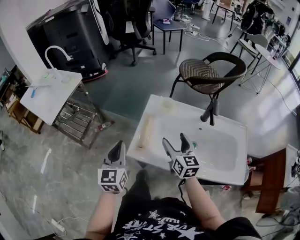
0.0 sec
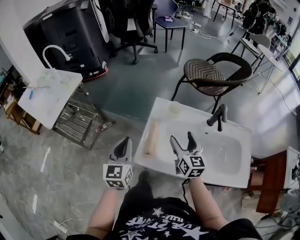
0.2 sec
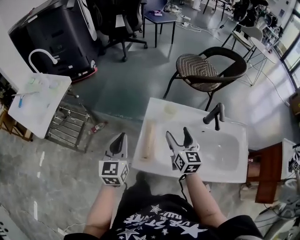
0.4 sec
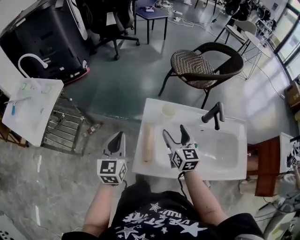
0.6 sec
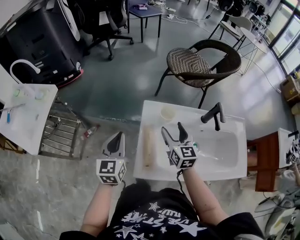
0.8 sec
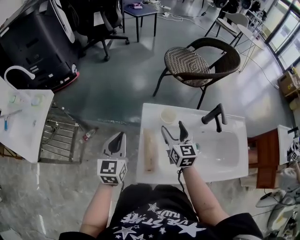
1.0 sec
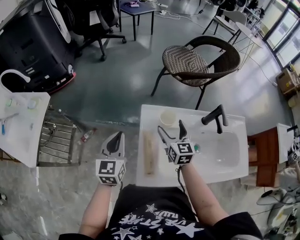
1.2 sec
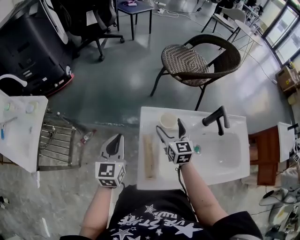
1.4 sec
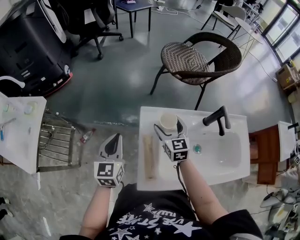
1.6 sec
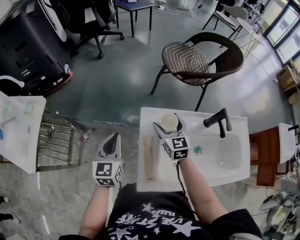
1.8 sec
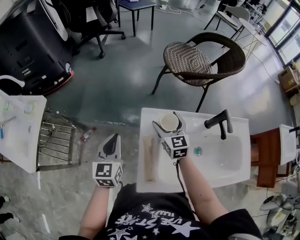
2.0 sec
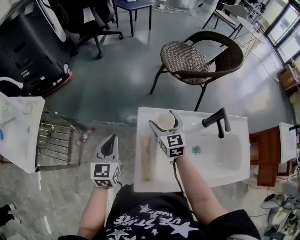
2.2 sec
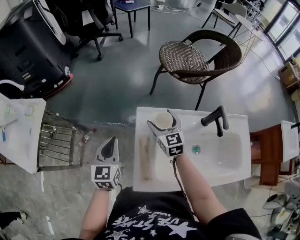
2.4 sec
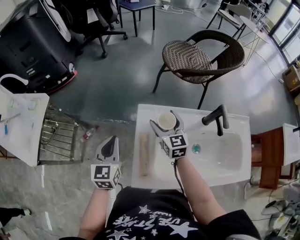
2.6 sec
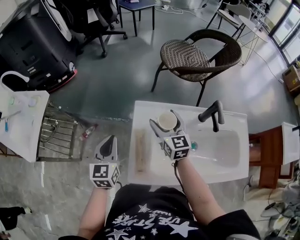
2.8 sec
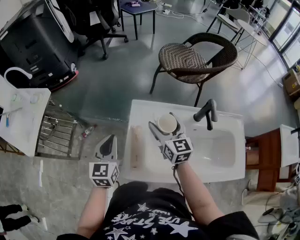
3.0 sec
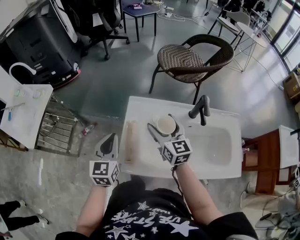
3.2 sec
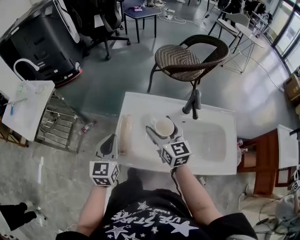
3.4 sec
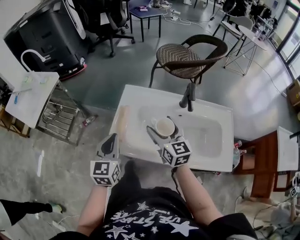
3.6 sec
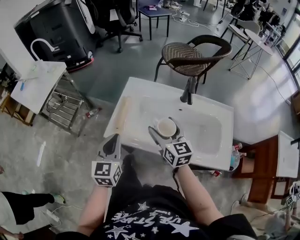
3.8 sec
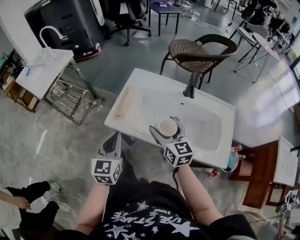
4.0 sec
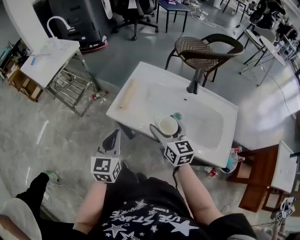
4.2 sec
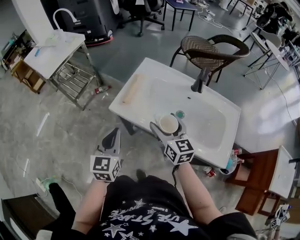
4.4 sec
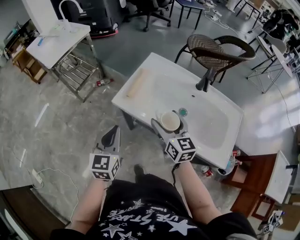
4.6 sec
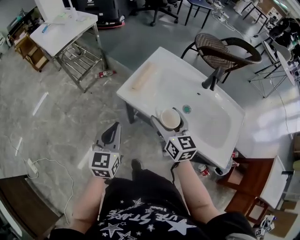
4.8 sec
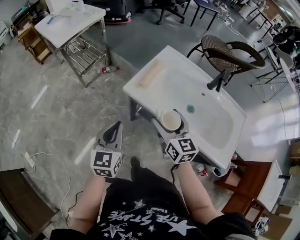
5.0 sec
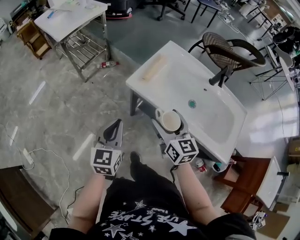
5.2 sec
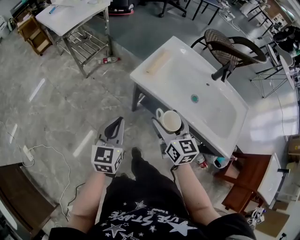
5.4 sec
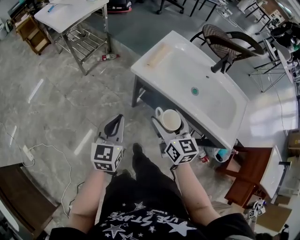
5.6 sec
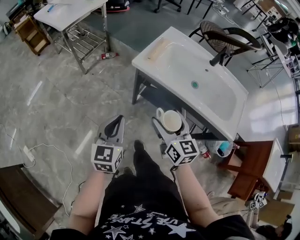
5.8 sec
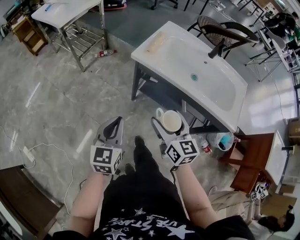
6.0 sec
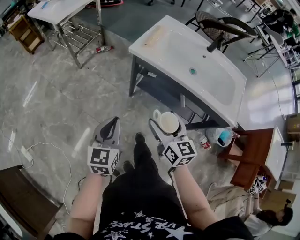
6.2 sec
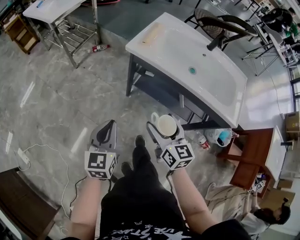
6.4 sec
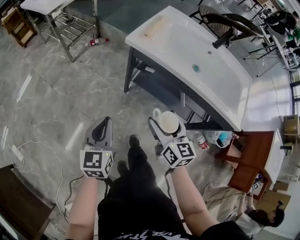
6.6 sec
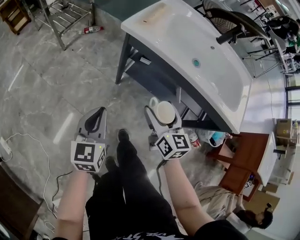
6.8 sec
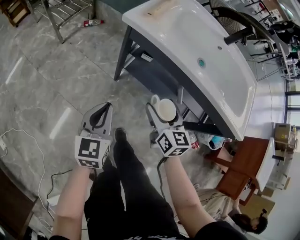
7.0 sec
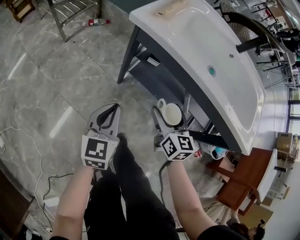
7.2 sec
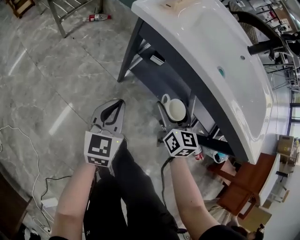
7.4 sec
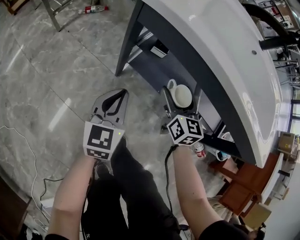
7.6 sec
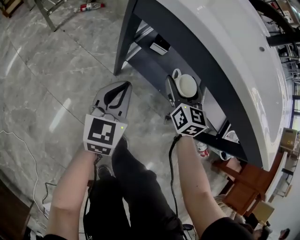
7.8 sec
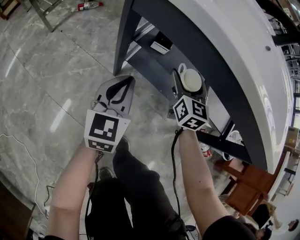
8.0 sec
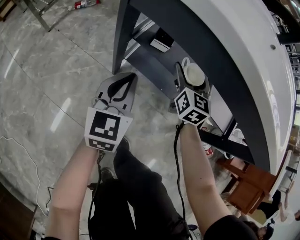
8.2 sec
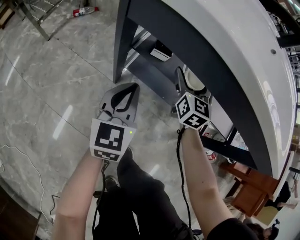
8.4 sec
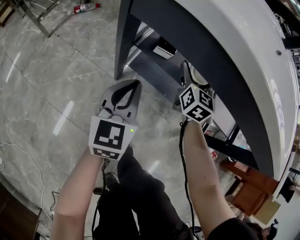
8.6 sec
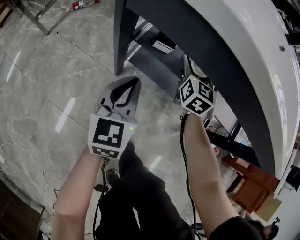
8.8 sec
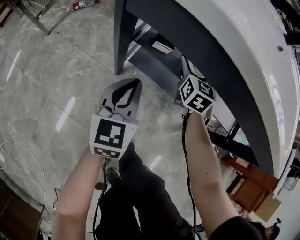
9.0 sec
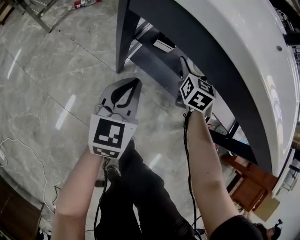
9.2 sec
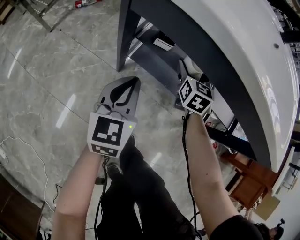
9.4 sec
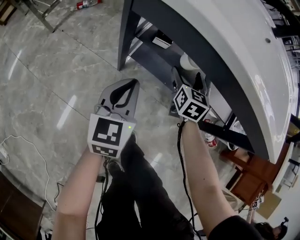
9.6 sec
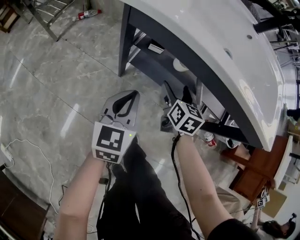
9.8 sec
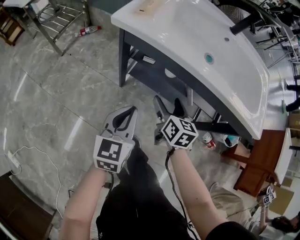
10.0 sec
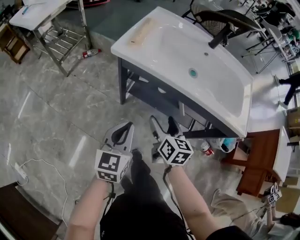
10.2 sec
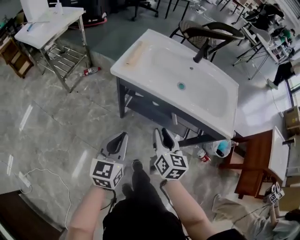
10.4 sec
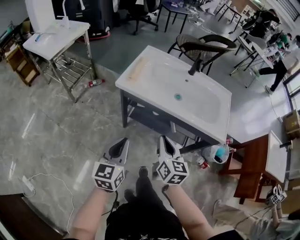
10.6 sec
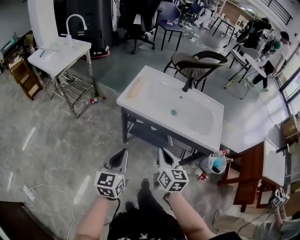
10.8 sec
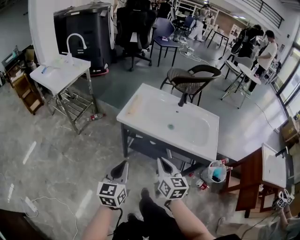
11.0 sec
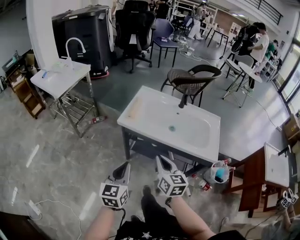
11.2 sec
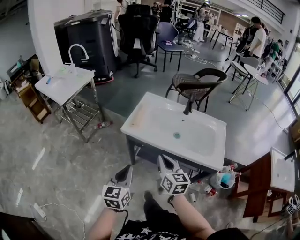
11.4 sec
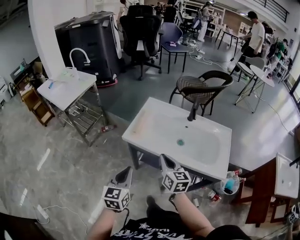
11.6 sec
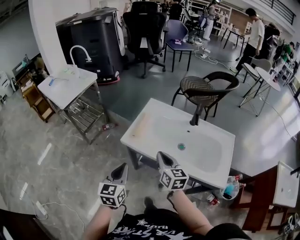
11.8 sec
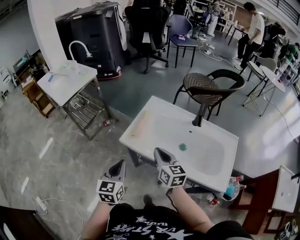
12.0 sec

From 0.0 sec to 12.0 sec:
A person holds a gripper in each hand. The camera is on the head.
From 0.0 sec to 1.6 sec: The grippers both shift forward by some 20 cm. The right gripper turns by approximately 20 degrees; the left gripper rotates approximately 20 degrees.
From 1.6 sec to 3.0 sec: The right gripper is displaced upward and backward by approximately 10 cm, while the left gripper heads backward, covering approximately 5 cm.
From 3.0 sec to 4.4 sec: Both grippers move backward, roughly 30 cm. The right gripper turns by about 20 degrees.
From 4.4 sec to 6.0 sec: Both grippers move backward and to the left, roughly 20 cm.
From 6.0 sec to 7.6 sec: The grippers both shift downward and forward by roughly 30 cm.
From 7.6 sec to 9.0 sec: The left gripper travels forward by approximately 10 cm; the right gripper heads forward and downward, covering roughly 15 cm, and turns by approximately 20 degrees.
From 9.0 sec to 10.4 sec: The right gripper moves backward and upward, some 40 cm, swivels some 20 degrees, and closes, while the left gripper travels upward and backward by about 35 cm.
From 10.4 sec to 12.0 sec: The grippers both shift forward and upward by roughly 20 cm. The right gripper turns by approximately 20 degrees.

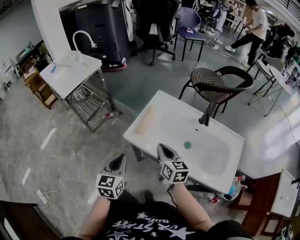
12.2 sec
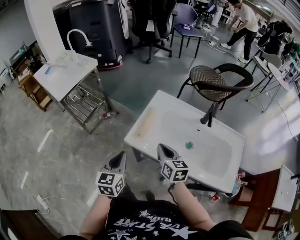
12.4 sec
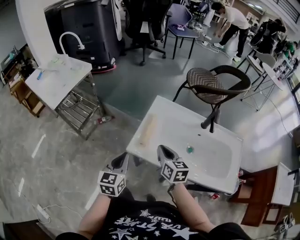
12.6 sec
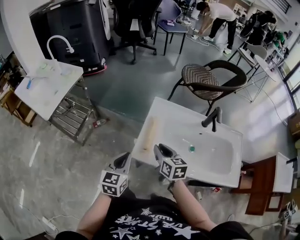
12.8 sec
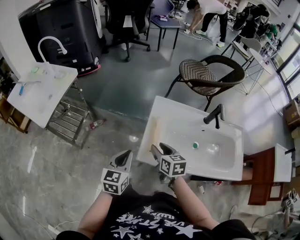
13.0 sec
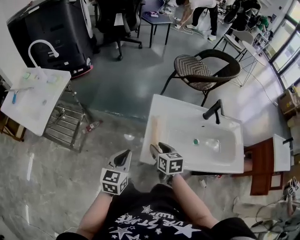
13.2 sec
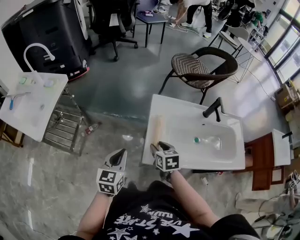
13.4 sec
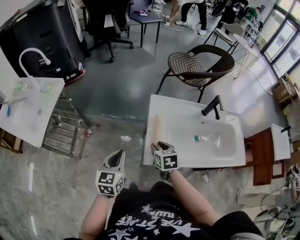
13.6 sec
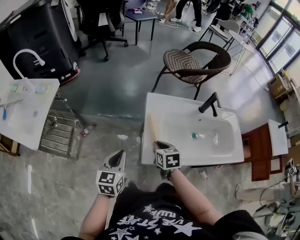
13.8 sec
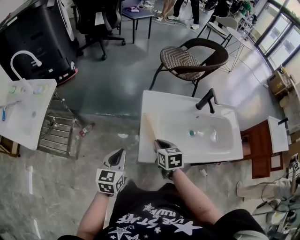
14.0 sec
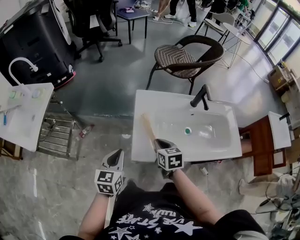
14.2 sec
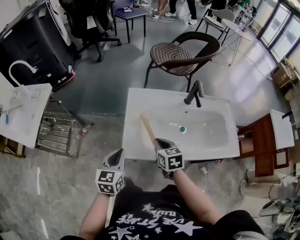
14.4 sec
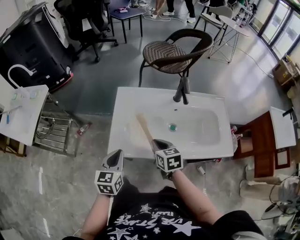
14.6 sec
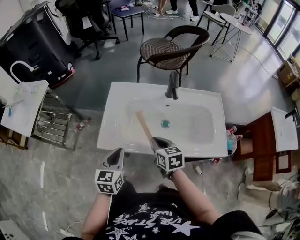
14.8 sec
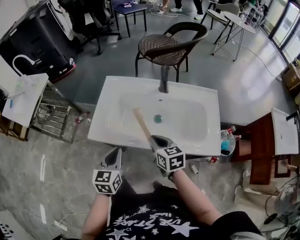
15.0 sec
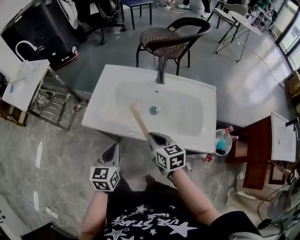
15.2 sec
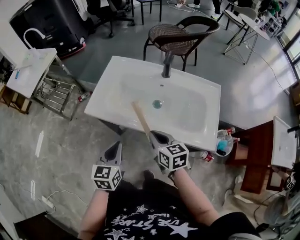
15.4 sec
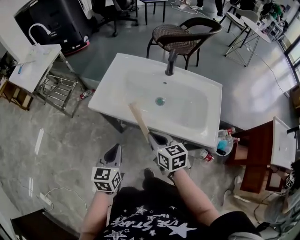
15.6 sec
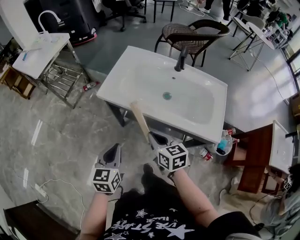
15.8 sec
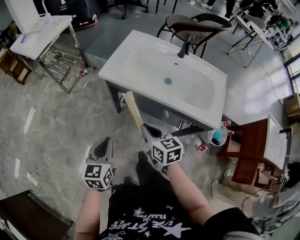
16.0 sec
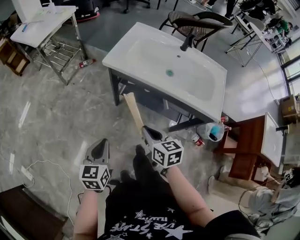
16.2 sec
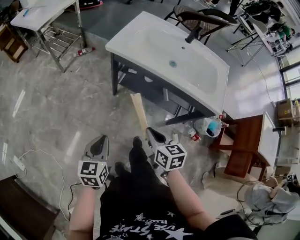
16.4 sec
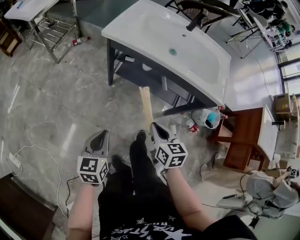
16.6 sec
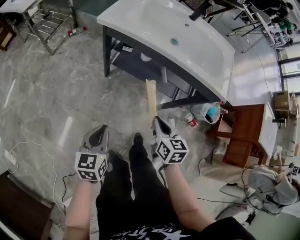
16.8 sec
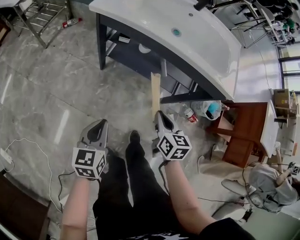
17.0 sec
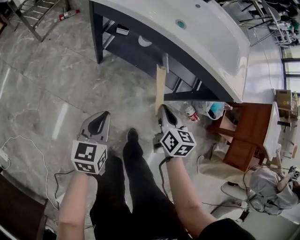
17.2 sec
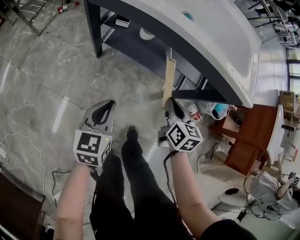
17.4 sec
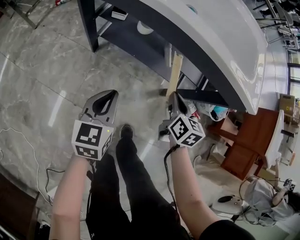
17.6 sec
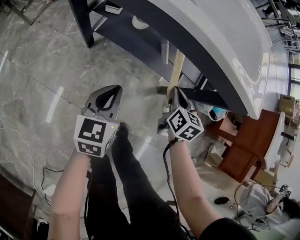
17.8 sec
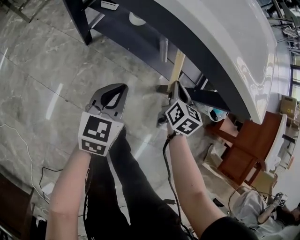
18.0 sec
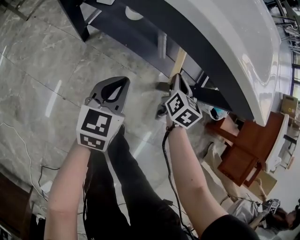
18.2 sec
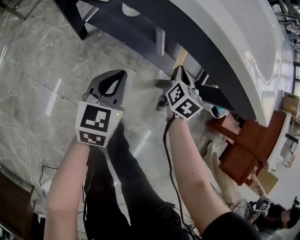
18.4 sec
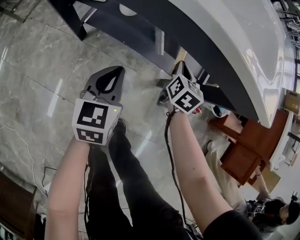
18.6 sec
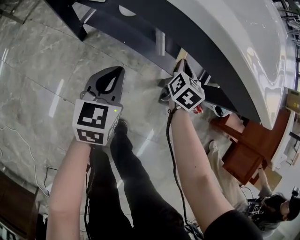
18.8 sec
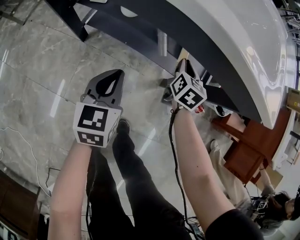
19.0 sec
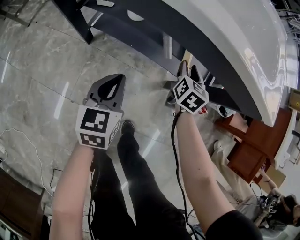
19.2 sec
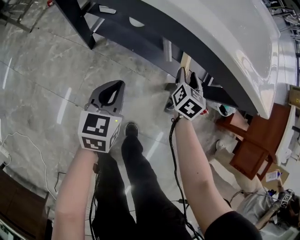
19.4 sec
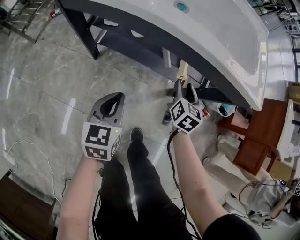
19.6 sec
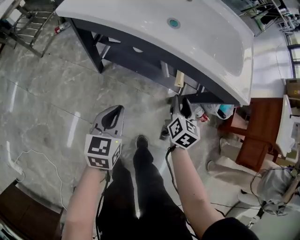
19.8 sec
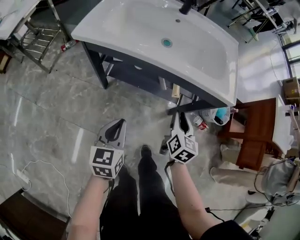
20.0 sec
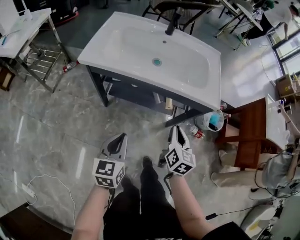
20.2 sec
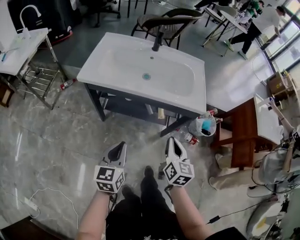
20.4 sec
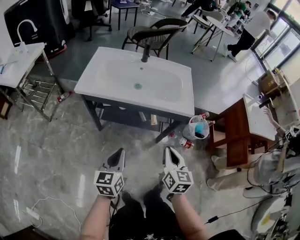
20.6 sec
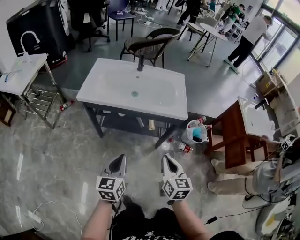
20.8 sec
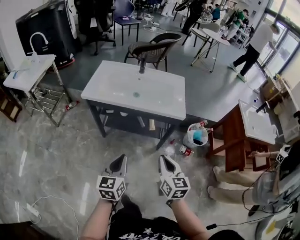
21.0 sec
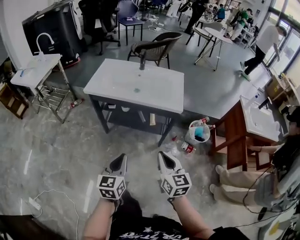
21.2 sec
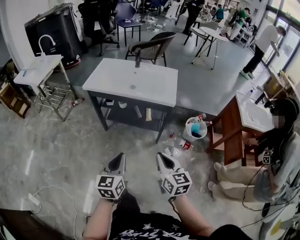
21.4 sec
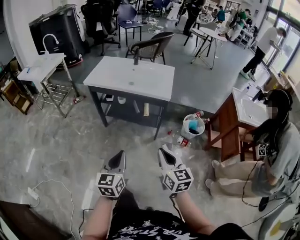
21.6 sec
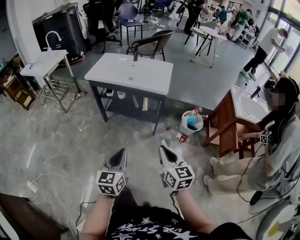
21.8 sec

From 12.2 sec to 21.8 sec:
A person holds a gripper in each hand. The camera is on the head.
From 12.2 sec to 13.8 sec: The left gripper shifts by approximately 25 cm, and changes its angle by approximately 30 degrees; the right gripper moves about 20 cm, and turns by roughly 40 degrees.
From 13.8 sec to 15.4 sec: Both grippers move to the right and backward, some 35 cm. The right gripper changes its angle by approximately 30 degrees.
From 15.4 sec to 17.0 sec: The right gripper is displaced backward and downward by some 30 cm; the left gripper travels backward, downward and to the left by roughly 30 cm.
From 17.0 sec to 18.6 sec: The right gripper goes some 35 cm forward, downward and to the right, and rotates roughly 20 degrees; the left gripper goes roughly 30 cm forward, to the right and downward.
From 18.6 sec to 20.2 sec: The grippers both shift upward and backward by about 30 cm.
From 20.2 sec to 21.8 sec: The right gripper travels backward, upward and to the right by approximately 40 cm, and turns by some 30 degrees; the left gripper moves backward, to the right and upward, approximately 40 cm.

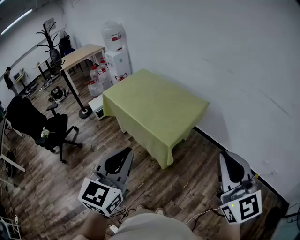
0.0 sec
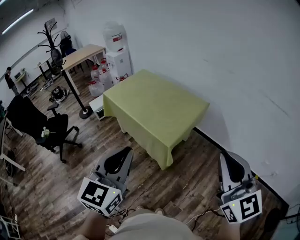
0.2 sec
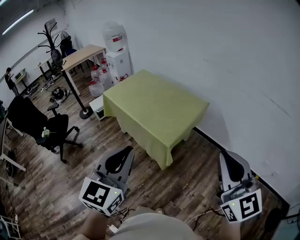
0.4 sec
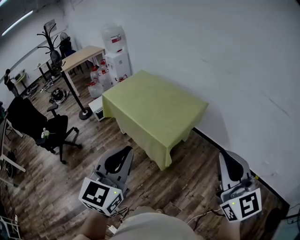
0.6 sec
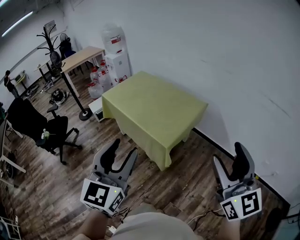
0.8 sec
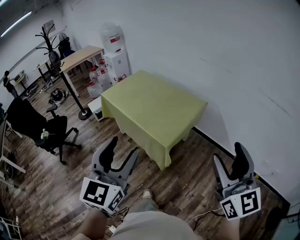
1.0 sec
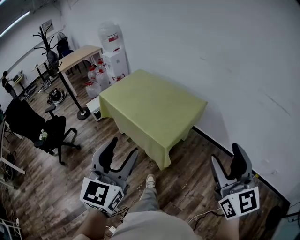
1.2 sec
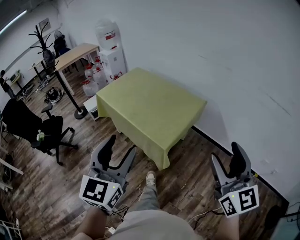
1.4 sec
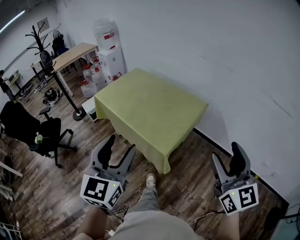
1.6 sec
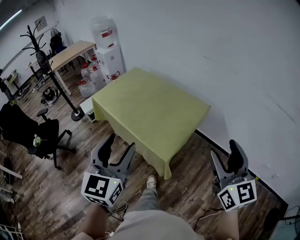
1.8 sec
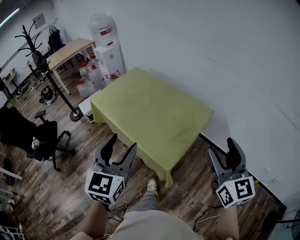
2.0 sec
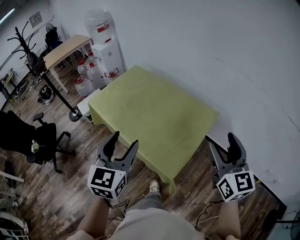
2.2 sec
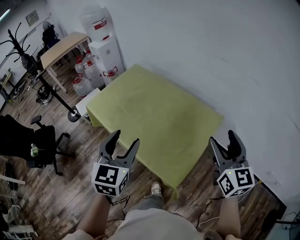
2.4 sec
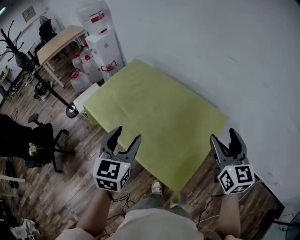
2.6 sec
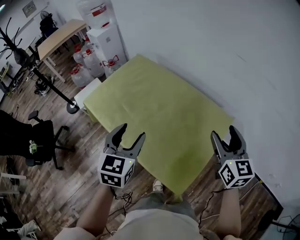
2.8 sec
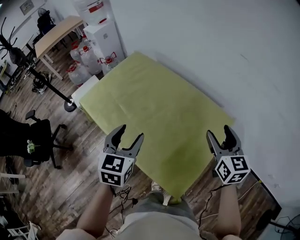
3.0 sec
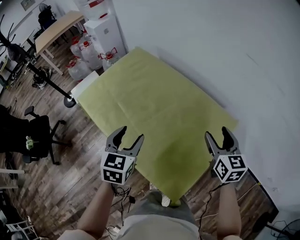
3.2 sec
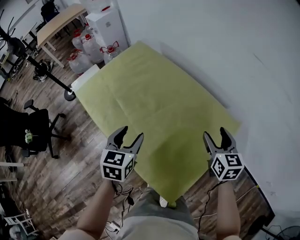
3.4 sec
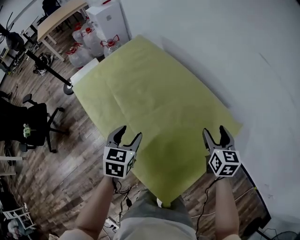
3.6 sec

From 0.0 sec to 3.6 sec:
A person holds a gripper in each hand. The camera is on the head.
From 0.0 sec to 1.8 sec: The two grippers go roughly 20 cm forward. The right gripper opens its fingers, while the left gripper opens its fingers.
From 1.8 sec to 3.6 sec: The pair of grippers is taken forward, about 50 cm. Both grippers move downward, about 30 cm. The left gripper angles its fingers downward, by approximately 40 degrees. The right gripper tilts its fingers roughly 30 degrees downward.
